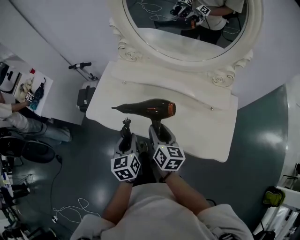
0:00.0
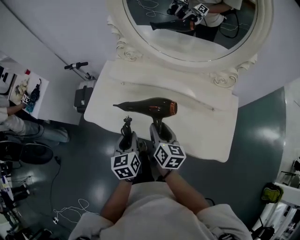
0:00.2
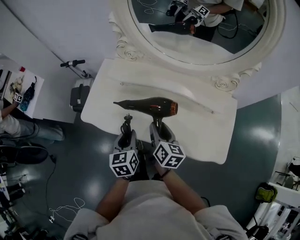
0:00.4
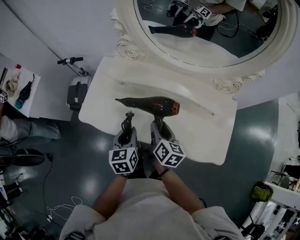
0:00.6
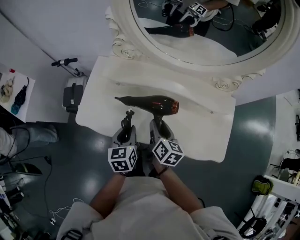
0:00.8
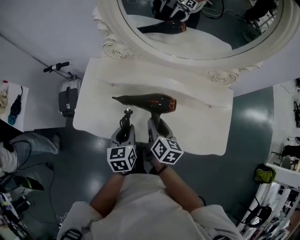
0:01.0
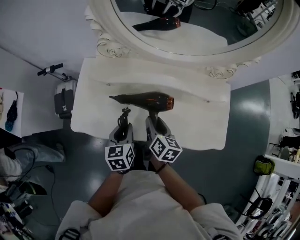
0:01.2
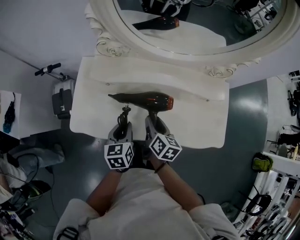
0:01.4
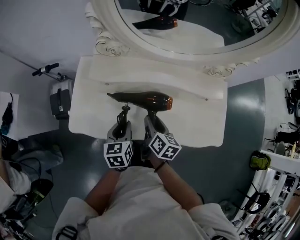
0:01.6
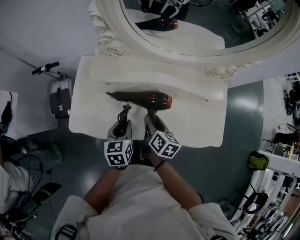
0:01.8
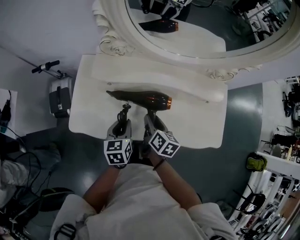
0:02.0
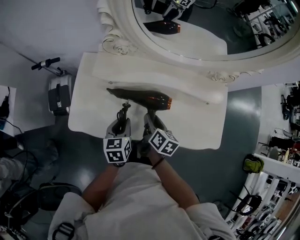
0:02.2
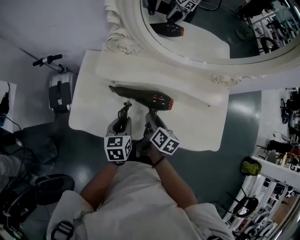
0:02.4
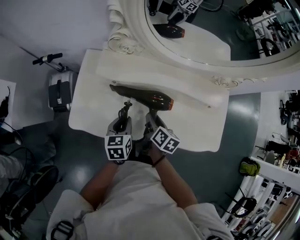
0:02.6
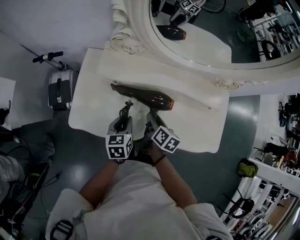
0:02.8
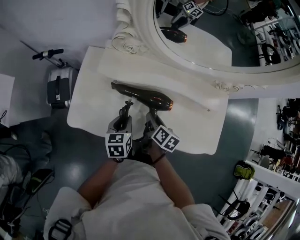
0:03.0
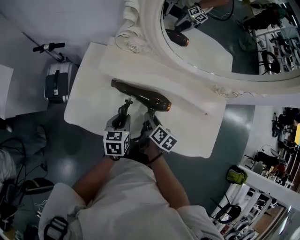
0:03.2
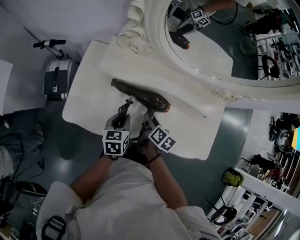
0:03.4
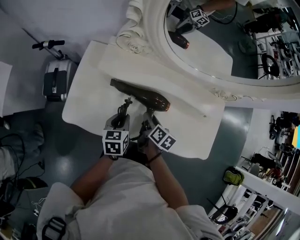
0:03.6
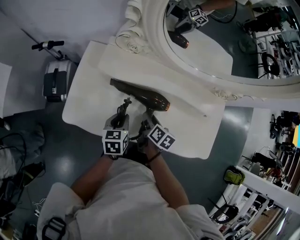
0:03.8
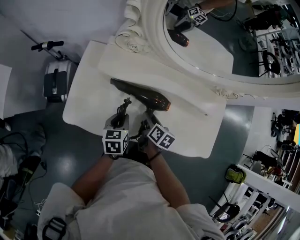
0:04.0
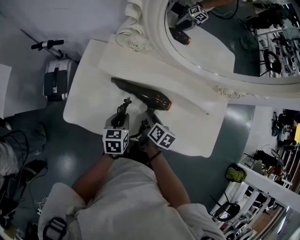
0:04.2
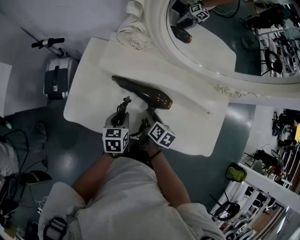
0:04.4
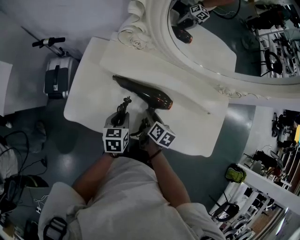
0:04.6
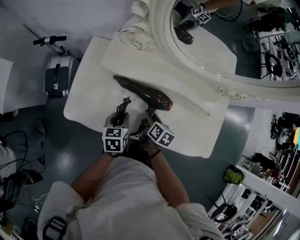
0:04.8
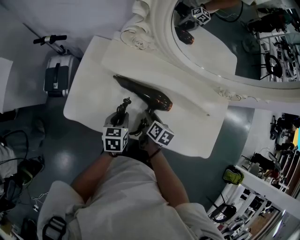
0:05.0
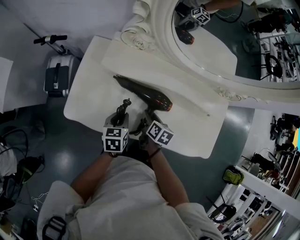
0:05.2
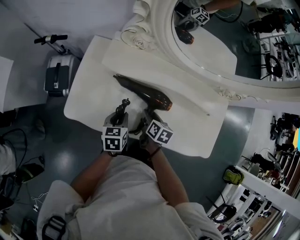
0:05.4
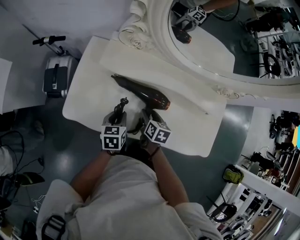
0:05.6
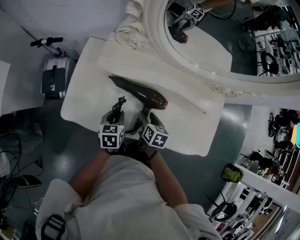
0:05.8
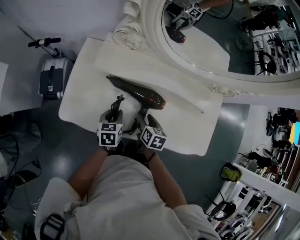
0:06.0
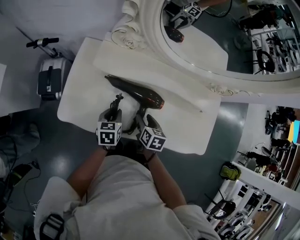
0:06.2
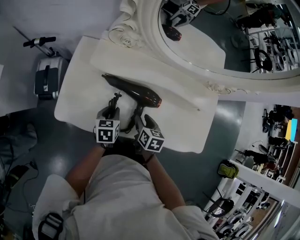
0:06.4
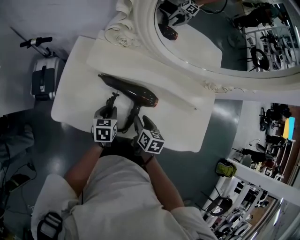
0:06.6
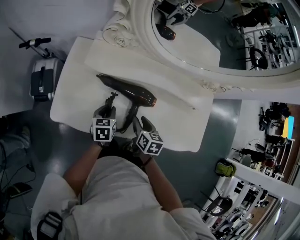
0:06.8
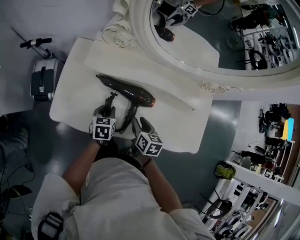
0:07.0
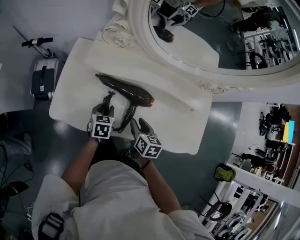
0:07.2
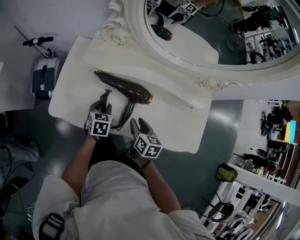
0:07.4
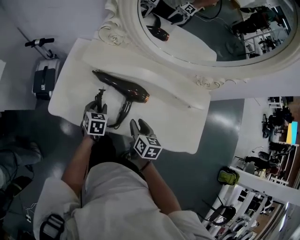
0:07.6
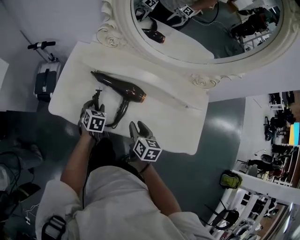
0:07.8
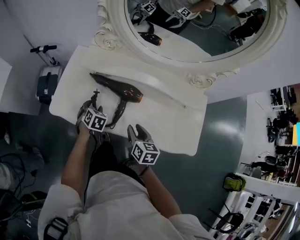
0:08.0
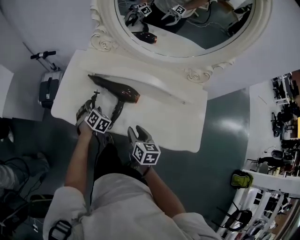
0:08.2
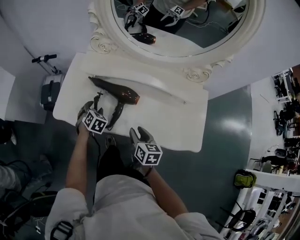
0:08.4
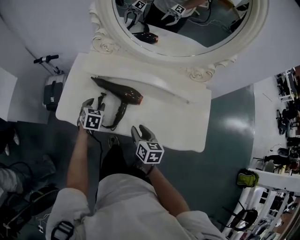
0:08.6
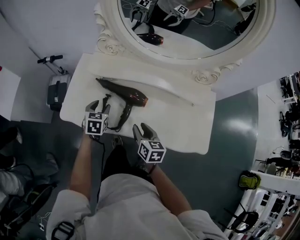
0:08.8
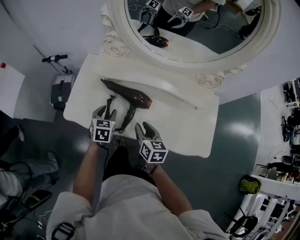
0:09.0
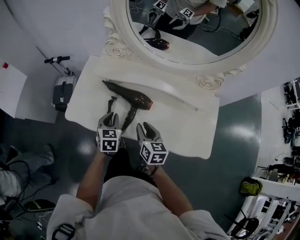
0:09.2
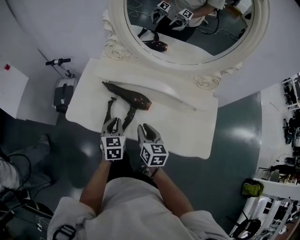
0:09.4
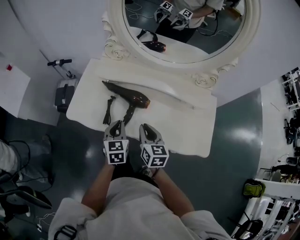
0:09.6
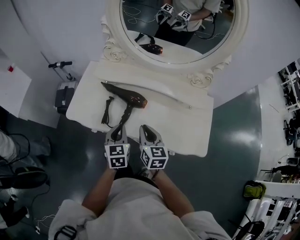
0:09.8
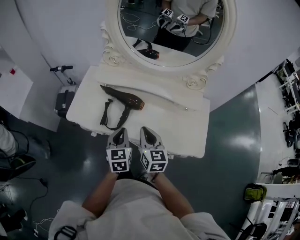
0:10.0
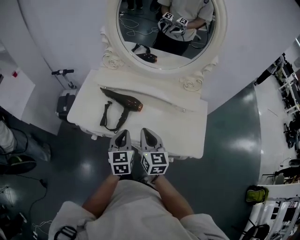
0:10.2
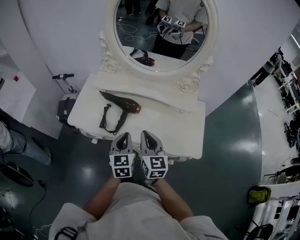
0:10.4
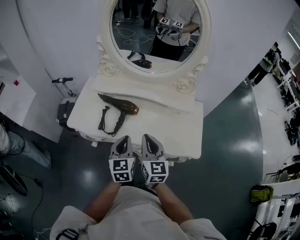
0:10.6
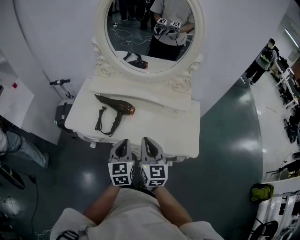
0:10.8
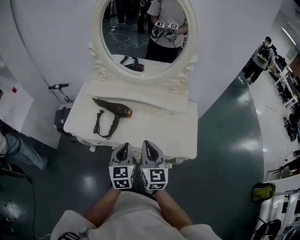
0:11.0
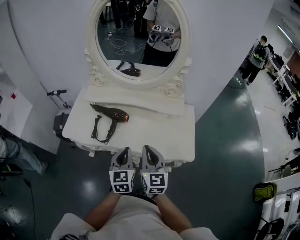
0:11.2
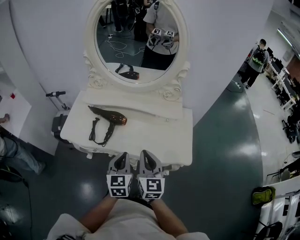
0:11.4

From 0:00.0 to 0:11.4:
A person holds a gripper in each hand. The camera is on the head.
From 0:00.0 to 0:01.4: The grippers both shift forward and downward by about 10 cm. The right gripper changes its angle by approximately 20 degrees. Meanwhile the left gripper changes its angle by approximately 20 degrees.
From 0:01.4 to 0:02.8: The left gripper ends up about 5 cm from where it was. Meanwhile the right gripper shifts approximately 5 cm downward.
From 0:02.8 to 0:04.2: There are only small adjustments of the grippers.
From 0:04.2 to 0:05.6: The grippers stay close to where they were, moving slightly.
From 0:05.6 to 0:07.2: The right gripper changes place by about 5 cm.
From 0:07.2 to 0:08.6: The left gripper goes about 5 cm upward, and opens its fingers. Meanwhile the right gripper travels backward by about 5 cm.
From 0:08.6 to 0:10.0: The right gripper is displaced upward by roughly 10 cm, turns by approximately 20 degrees, and closes its fingers. Meanwhile the left gripper moves backward, upward and to the right, approximately 25 cm, rotates about 30 degrees, and closes its fingers.
From 0:10.0 to 0:11.4: The left gripper moves to the right, backward and upward, about 15 cm. Meanwhile the right gripper moves backward, to the right and upward, approximately 15 cm.

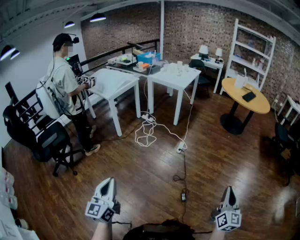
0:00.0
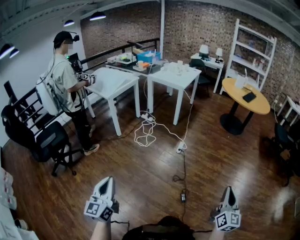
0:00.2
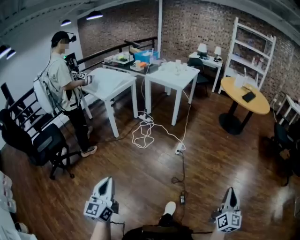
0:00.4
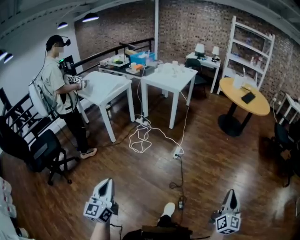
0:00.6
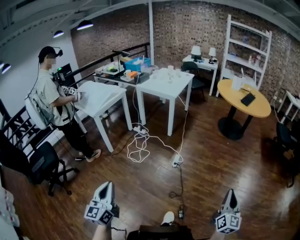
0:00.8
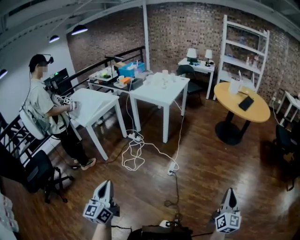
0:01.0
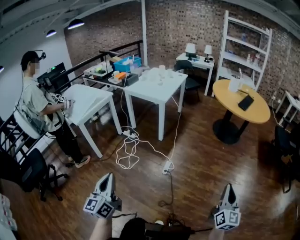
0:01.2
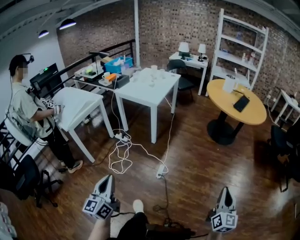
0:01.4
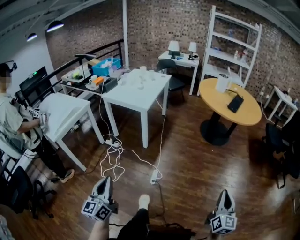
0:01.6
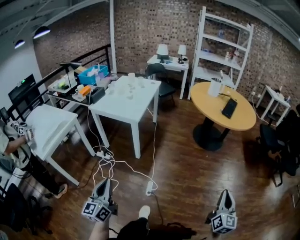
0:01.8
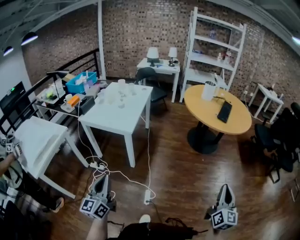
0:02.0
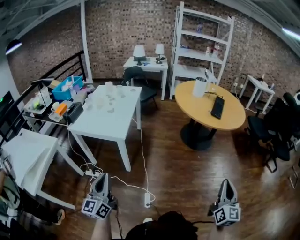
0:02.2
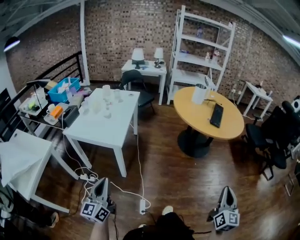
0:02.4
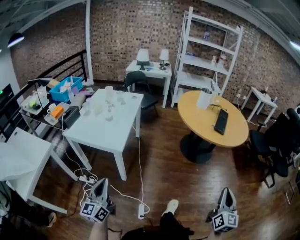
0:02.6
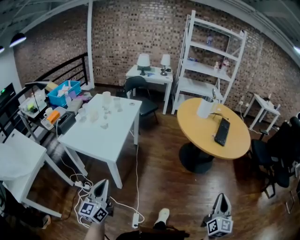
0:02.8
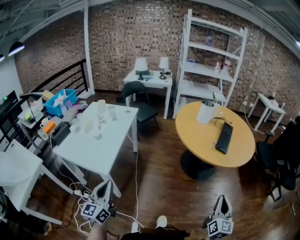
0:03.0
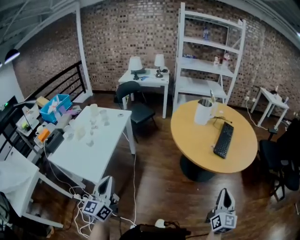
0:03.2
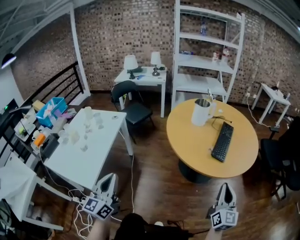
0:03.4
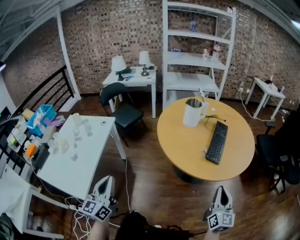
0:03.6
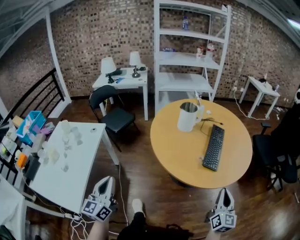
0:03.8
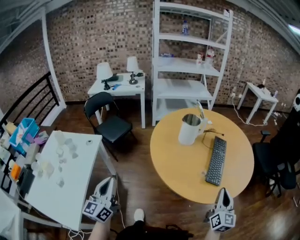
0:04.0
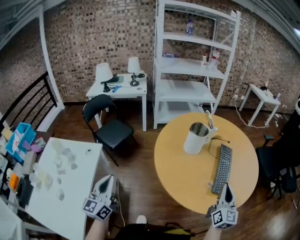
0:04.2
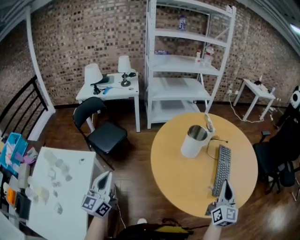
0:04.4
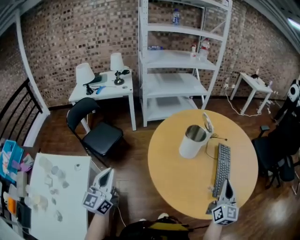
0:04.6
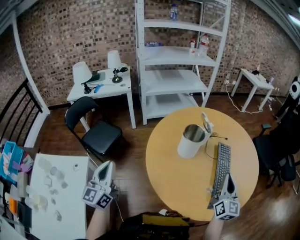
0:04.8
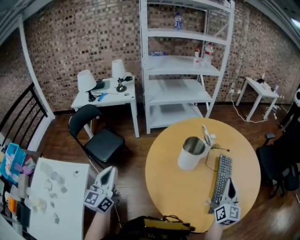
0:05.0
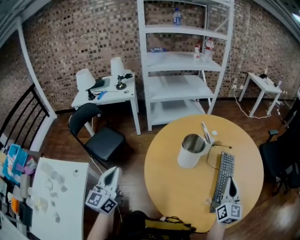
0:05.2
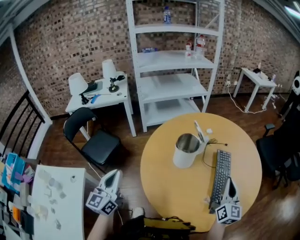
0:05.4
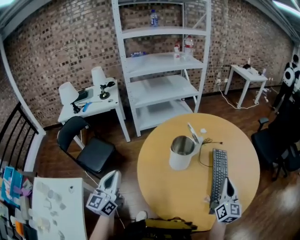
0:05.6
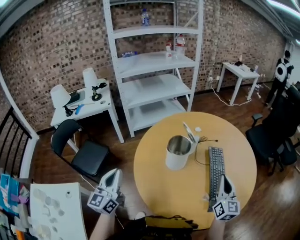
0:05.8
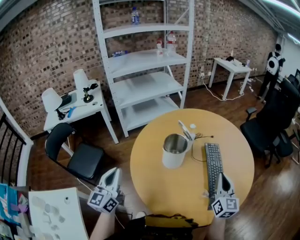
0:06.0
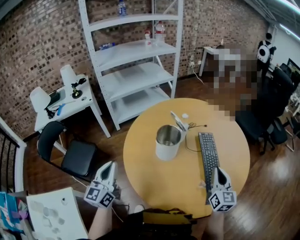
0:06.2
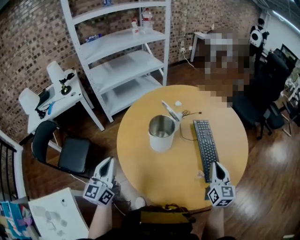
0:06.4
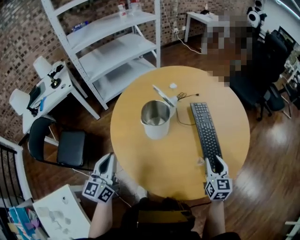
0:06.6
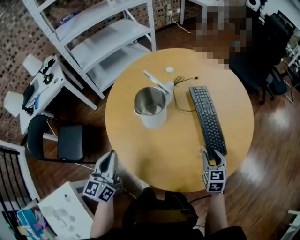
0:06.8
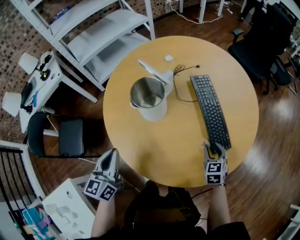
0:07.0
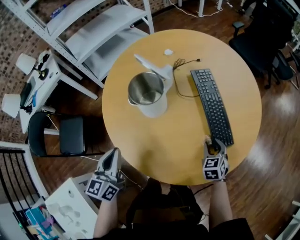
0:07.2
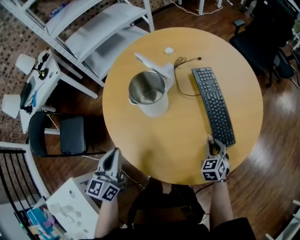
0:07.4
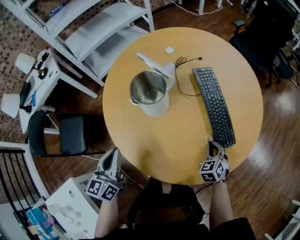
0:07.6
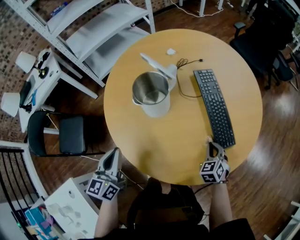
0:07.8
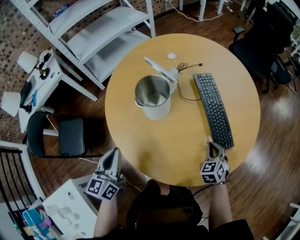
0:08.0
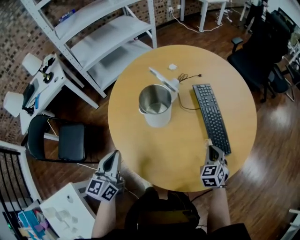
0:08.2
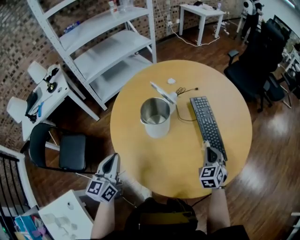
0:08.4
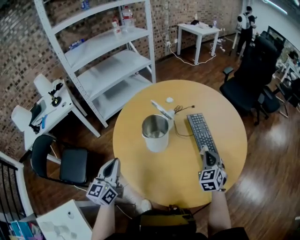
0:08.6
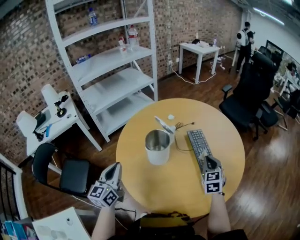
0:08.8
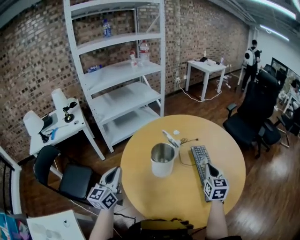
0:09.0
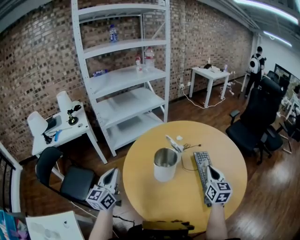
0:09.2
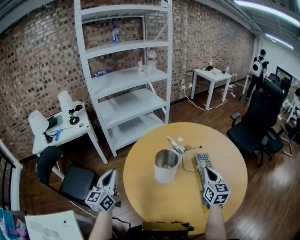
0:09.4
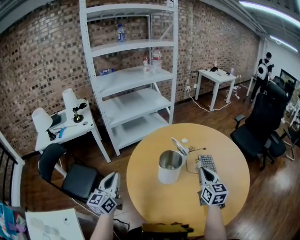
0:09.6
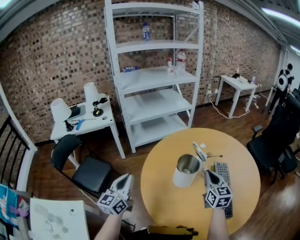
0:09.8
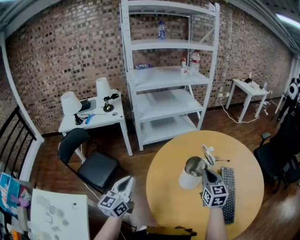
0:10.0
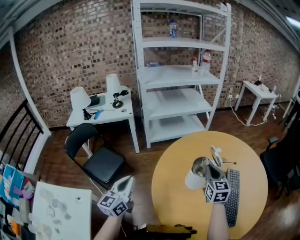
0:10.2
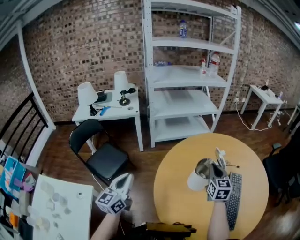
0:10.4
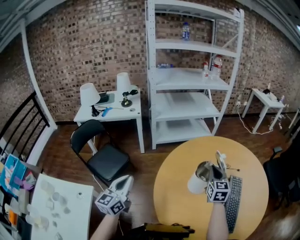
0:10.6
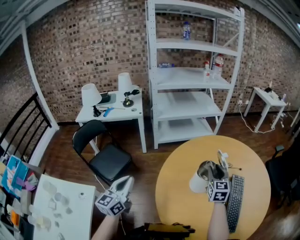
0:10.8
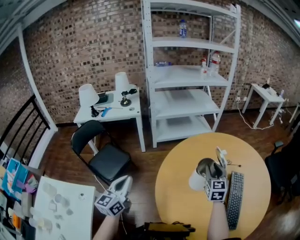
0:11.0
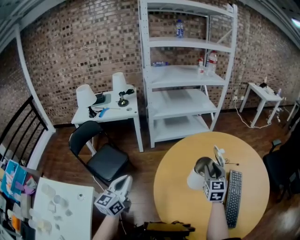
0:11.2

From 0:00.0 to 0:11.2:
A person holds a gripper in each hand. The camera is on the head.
From 0:00.0 to 0:01.6: The pair of grippers is taken forward, approximately 50 cm.
From 0:01.6 to 0:03.2: The two grippers travel together, forward, some 60 cm.
From 0:03.2 to 0:04.8: The pair of grippers is taken forward, roughly 60 cm.
From 0:04.8 to 0:06.4: The left gripper shifts about 20 cm forward and to the right, and turns by some 20 degrees. The right gripper is displaced downward by approximately 10 cm.
From 0:06.4 to 0:08.0: The right gripper moves downward, about 20 cm, tips its fingers downward by roughly 30 degrees, and opens, then closes once more. Meanwhile the left gripper heads downward, covering some 10 cm.
From 0:08.0 to 0:09.6: The right gripper travels upward and to the left by about 25 cm, and tilts its fingers some 30 degrees upward, while the left gripper is displaced upward and to the left by approximately 15 cm, and swivels about 20 degrees.
From 0:09.6 to 0:11.2: The left gripper goes approximately 10 cm to the left and backward. Meanwhile the right gripper is displaced to the left and forward by some 15 cm, and opens up.

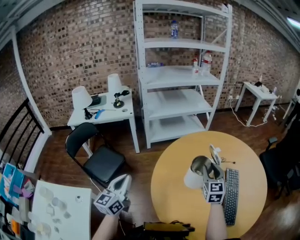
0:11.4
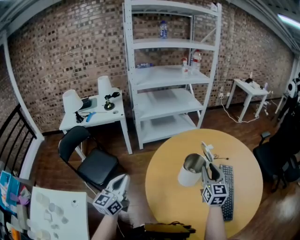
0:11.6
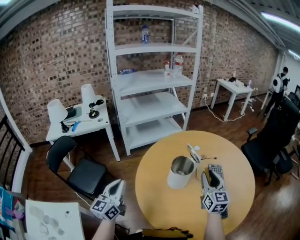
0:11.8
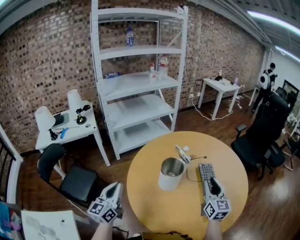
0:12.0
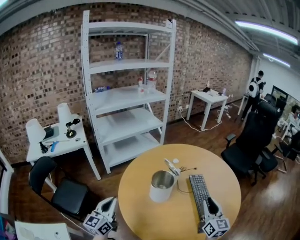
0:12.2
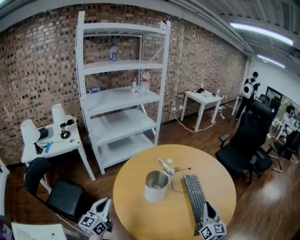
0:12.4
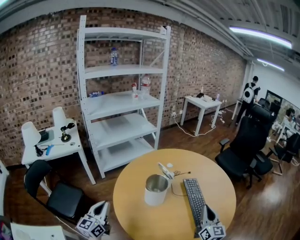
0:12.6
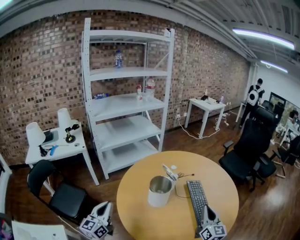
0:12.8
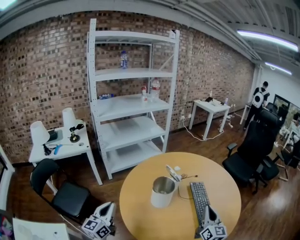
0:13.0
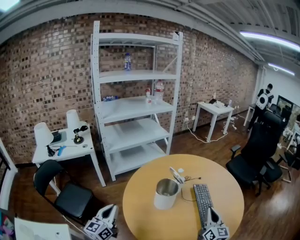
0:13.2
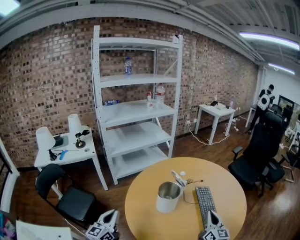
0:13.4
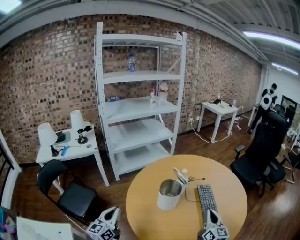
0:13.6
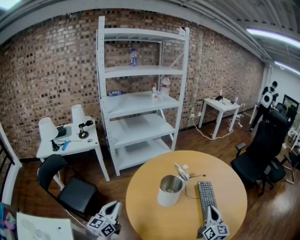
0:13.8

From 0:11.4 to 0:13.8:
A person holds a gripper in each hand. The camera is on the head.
From 0:11.4 to 0:12.6: The right gripper goes some 25 cm to the right and backward, changes its angle by approximately 30 degrees, and closes its fingers; the left gripper goes some 5 cm to the right.
From 0:12.6 to 0:13.8: The grippers move only a little.
